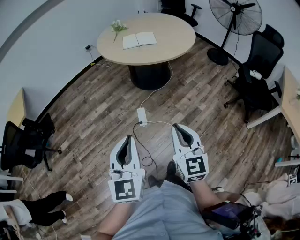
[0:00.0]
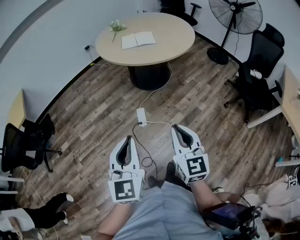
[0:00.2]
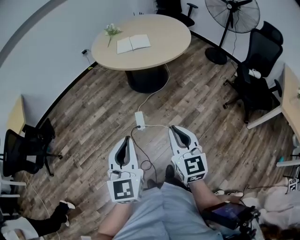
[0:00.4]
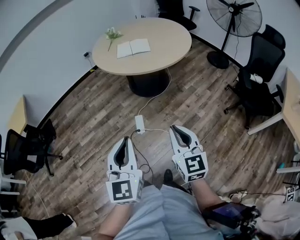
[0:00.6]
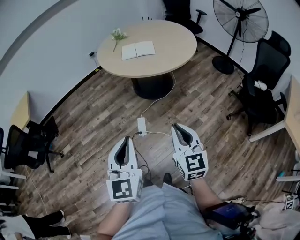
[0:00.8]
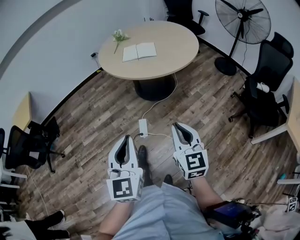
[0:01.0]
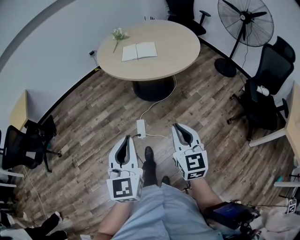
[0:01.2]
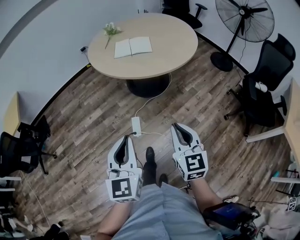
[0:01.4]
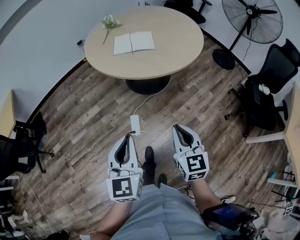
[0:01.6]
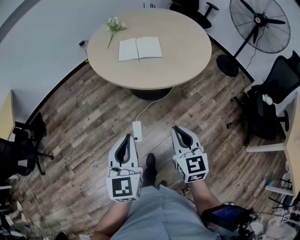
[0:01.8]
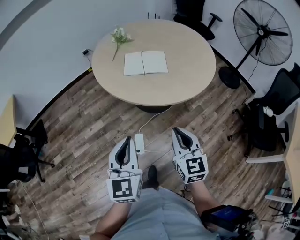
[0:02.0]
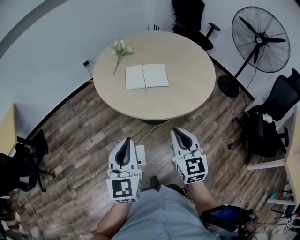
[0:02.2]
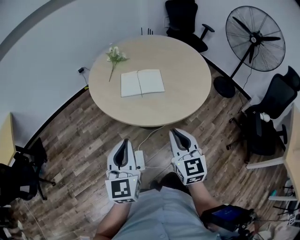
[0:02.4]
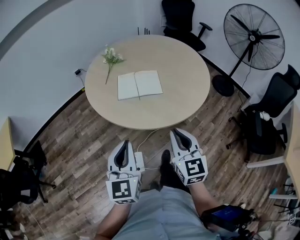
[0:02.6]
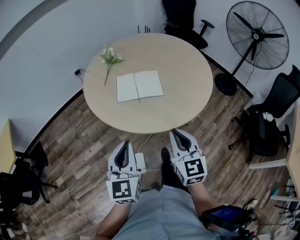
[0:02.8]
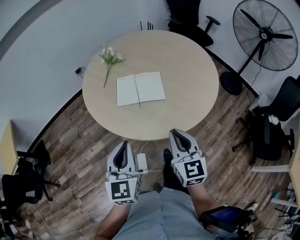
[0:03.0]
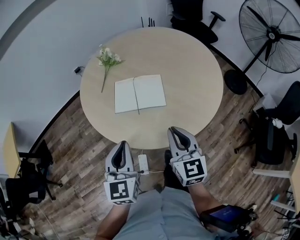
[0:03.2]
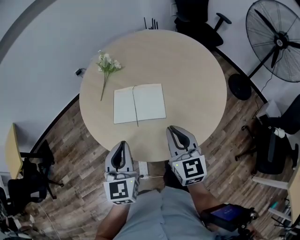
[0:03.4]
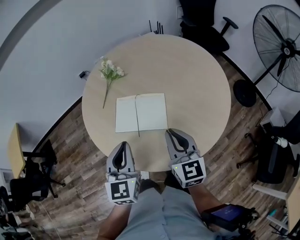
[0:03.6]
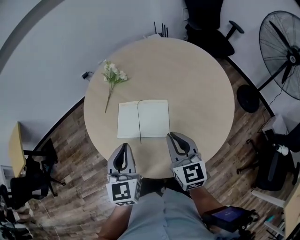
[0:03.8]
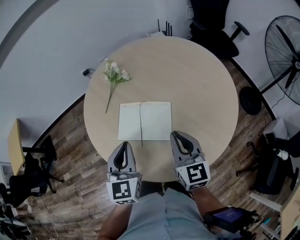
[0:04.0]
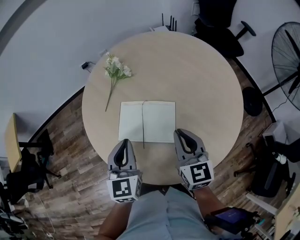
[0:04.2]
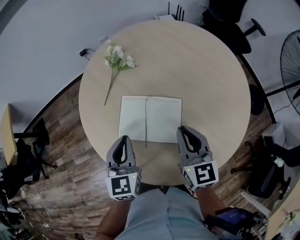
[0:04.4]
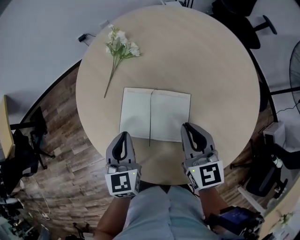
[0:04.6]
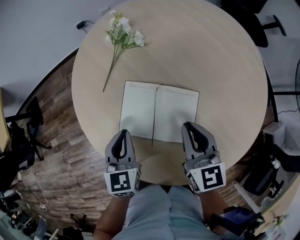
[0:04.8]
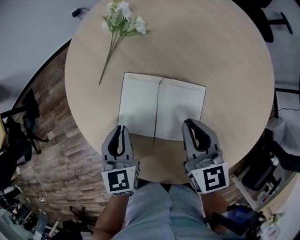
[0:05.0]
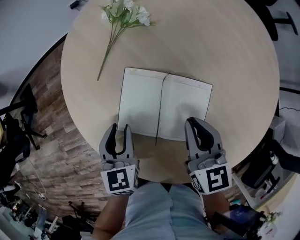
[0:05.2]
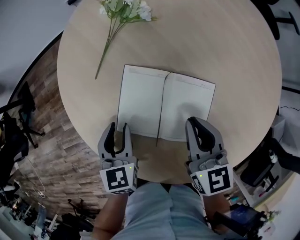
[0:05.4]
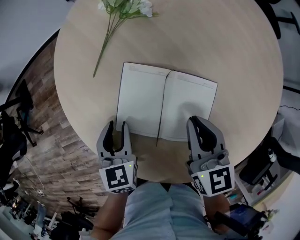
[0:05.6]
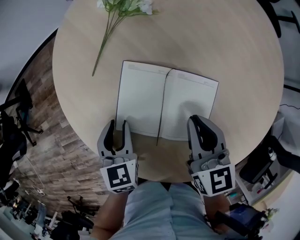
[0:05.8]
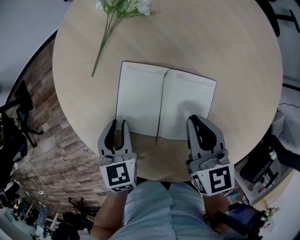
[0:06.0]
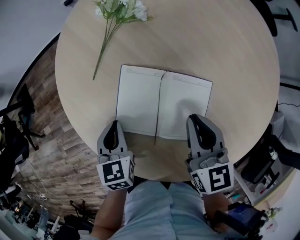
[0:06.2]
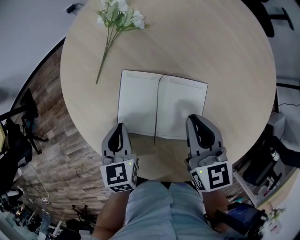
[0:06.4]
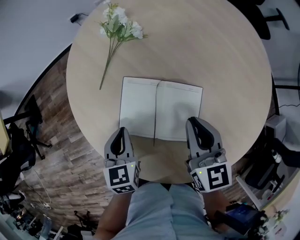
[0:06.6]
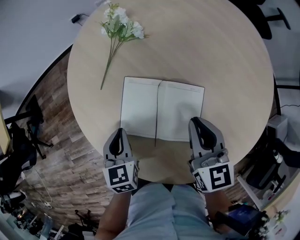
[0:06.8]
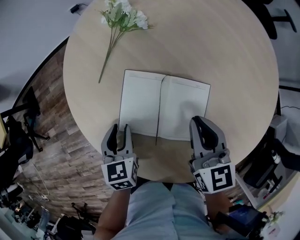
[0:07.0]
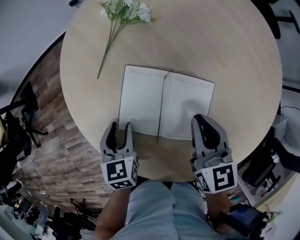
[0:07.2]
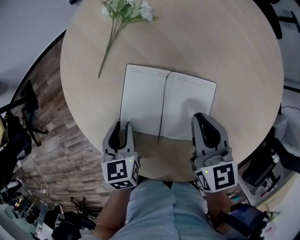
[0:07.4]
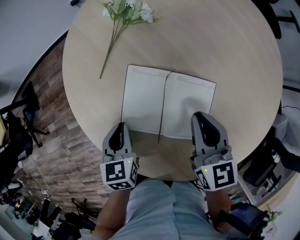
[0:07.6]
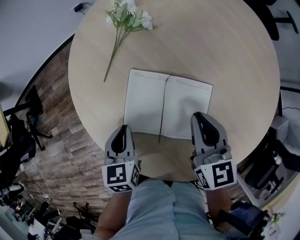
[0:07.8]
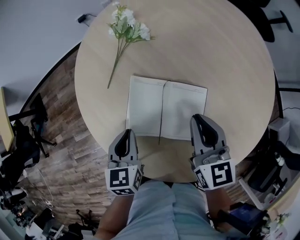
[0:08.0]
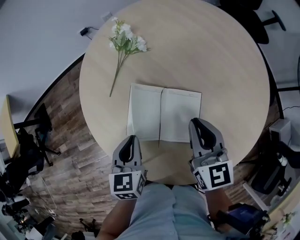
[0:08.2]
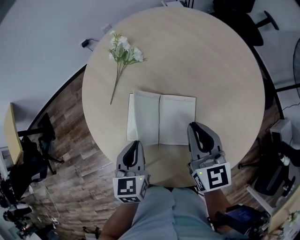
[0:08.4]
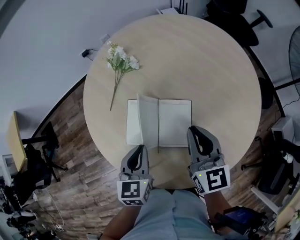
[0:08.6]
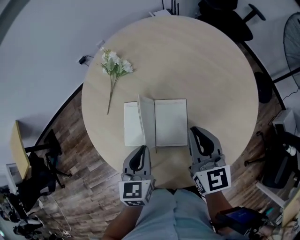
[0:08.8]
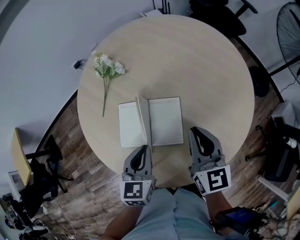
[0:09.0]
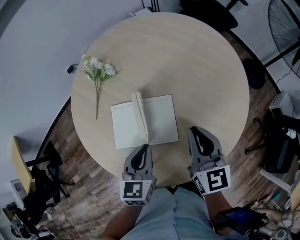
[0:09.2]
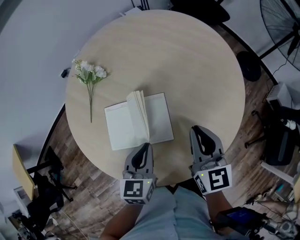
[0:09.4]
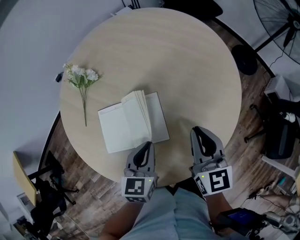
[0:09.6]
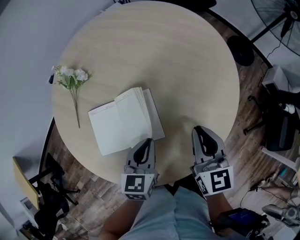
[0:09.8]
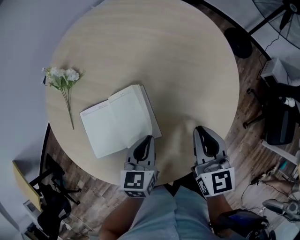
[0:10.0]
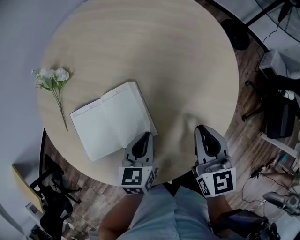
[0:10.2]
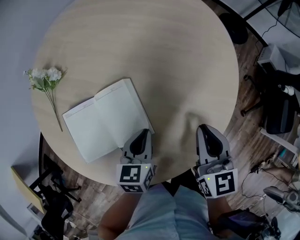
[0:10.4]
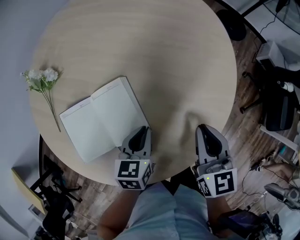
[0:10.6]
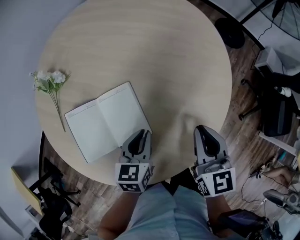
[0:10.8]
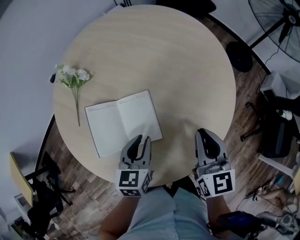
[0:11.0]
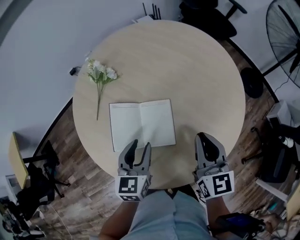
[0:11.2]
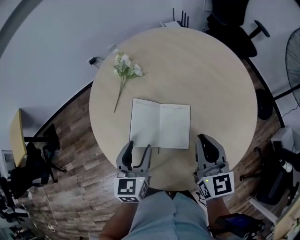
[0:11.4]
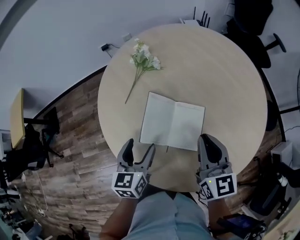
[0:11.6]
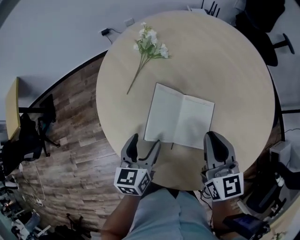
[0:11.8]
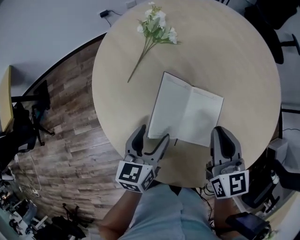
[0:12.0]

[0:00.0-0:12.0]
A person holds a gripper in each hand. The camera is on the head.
0:00.0 to 0:01.6: The right gripper is displaced forward and to the right by about 30 cm; the left gripper moves forward, some 30 cm.
0:01.6 to 0:03.0: Both grippers travel together forward, some 40 cm.
0:03.0 to 0:04.4: Both grippers move forward, about 35 cm.
0:04.4 to 0:06.0: The left gripper travels downward by roughly 20 cm, and changes its angle by approximately 20 degrees. The right gripper is displaced downward and forward by roughly 15 cm.
0:07.6 to 0:09.0: The left gripper is displaced to the right and upward by some 20 cm, and rotates about 30 degrees; the right gripper travels upward, to the right and backward by approximately 20 cm.
0:09.0 to 0:10.4: The right gripper moves to the right and downward, roughly 20 cm, and rotates approximately 20 degrees. Meanwhile the left gripper shifts some 20 cm downward and to the right, and changes its angle by some 20 degrees.
0:10.4 to 0:12.0: The left gripper moves some 25 cm, rotates some 40 degrees, and opens, while the right gripper moves approximately 30 cm, and turns by approximately 40 degrees.

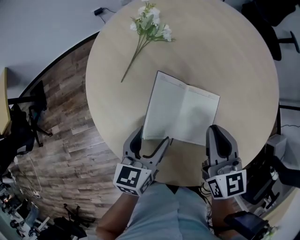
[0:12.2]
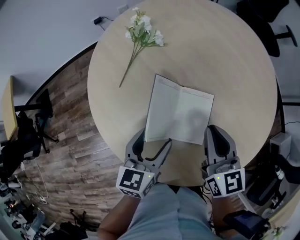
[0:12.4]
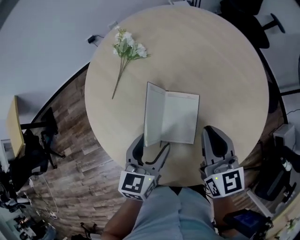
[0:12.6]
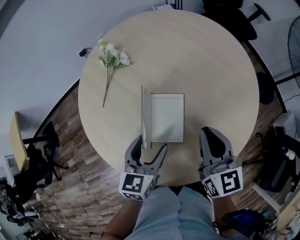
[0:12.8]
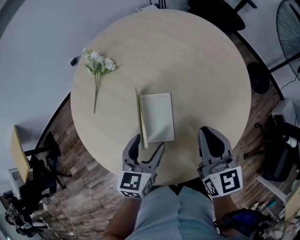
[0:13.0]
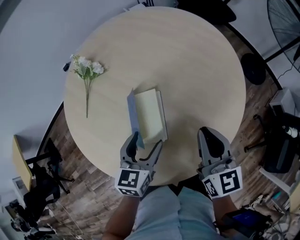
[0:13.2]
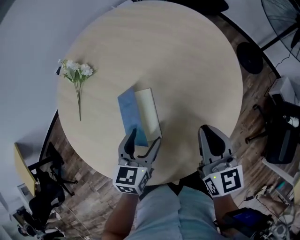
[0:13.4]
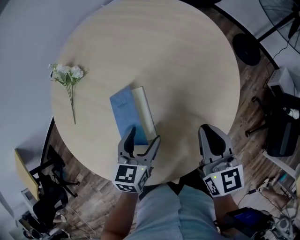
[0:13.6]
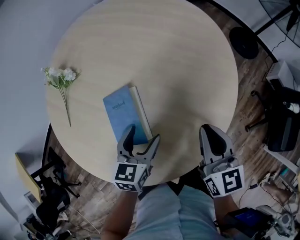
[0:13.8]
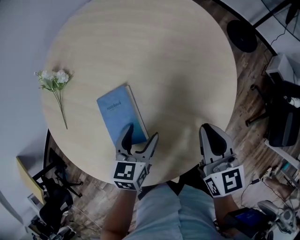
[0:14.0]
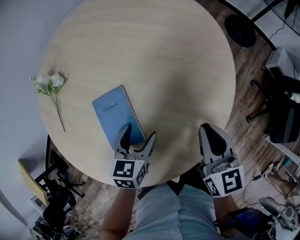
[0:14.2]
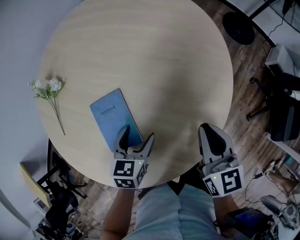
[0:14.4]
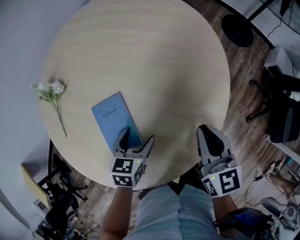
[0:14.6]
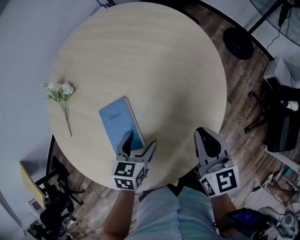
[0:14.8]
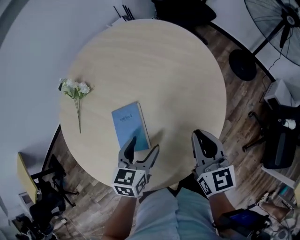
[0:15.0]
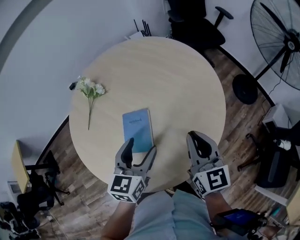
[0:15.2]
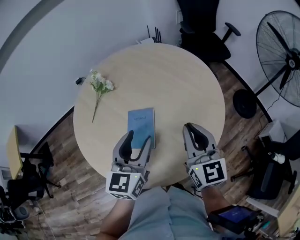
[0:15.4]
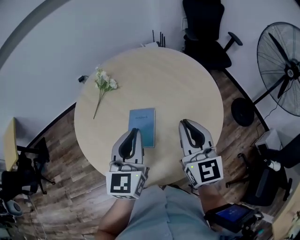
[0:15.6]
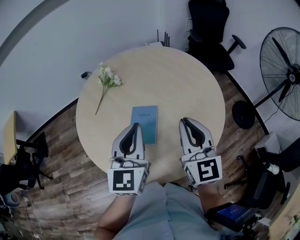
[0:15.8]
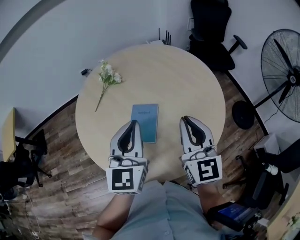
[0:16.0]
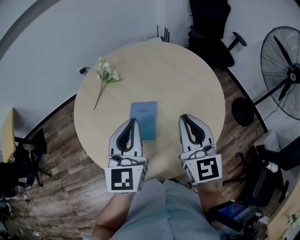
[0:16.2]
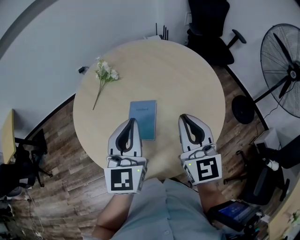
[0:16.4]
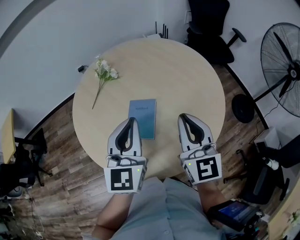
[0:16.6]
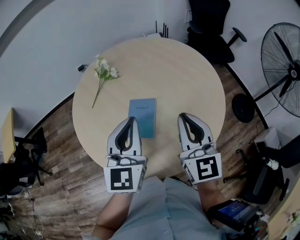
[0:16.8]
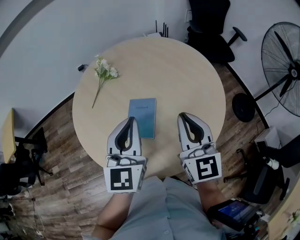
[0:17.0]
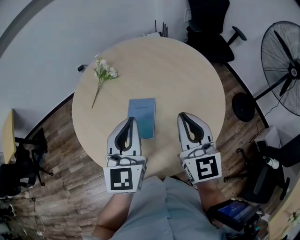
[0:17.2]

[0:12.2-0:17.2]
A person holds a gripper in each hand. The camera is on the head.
0:12.2 to 0:13.8: Both grippers move to the right, approximately 30 cm. The right gripper swivels roughly 30 degrees. The left gripper swivels roughly 30 degrees.
0:13.8 to 0:15.6: The two grippers go roughly 25 cm upward. The right gripper swivels roughly 30 degrees; the left gripper points its fingers roughly 30 degrees further upward, and closes.
0:15.6 to 0:17.2: The grippers make only small movements.

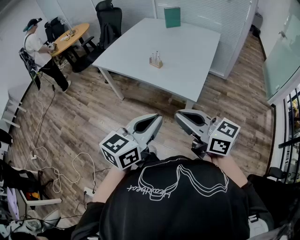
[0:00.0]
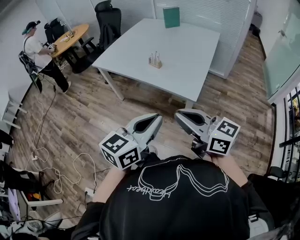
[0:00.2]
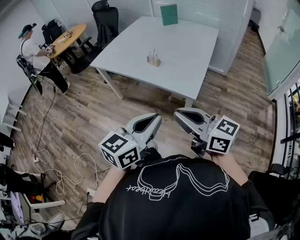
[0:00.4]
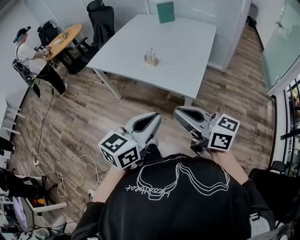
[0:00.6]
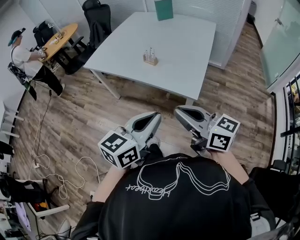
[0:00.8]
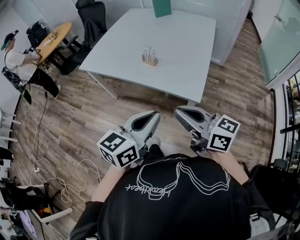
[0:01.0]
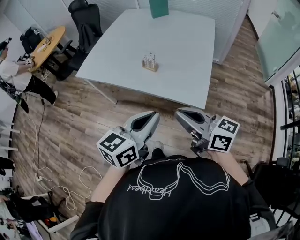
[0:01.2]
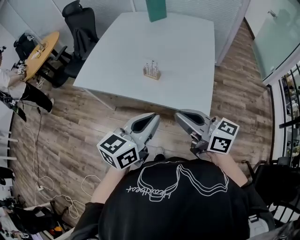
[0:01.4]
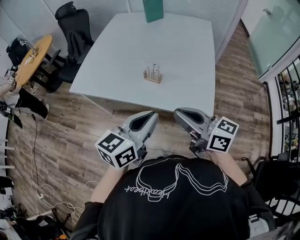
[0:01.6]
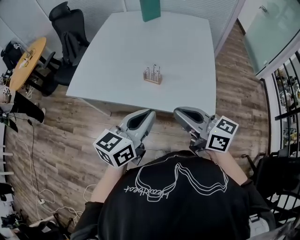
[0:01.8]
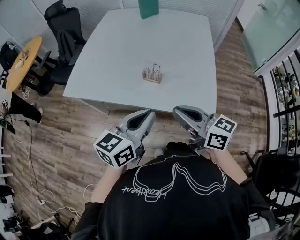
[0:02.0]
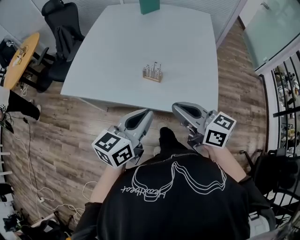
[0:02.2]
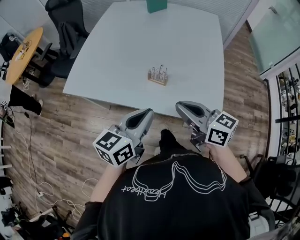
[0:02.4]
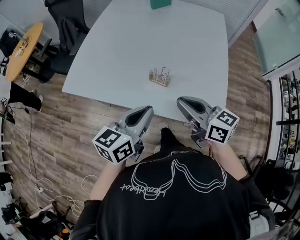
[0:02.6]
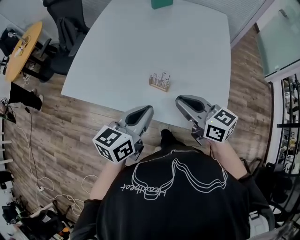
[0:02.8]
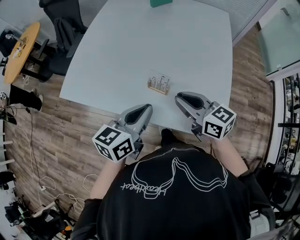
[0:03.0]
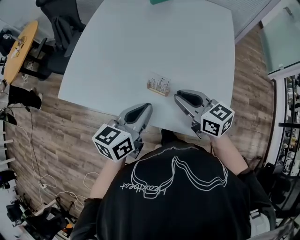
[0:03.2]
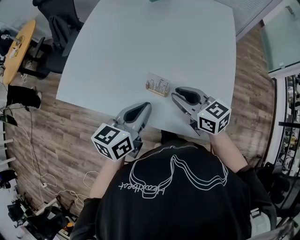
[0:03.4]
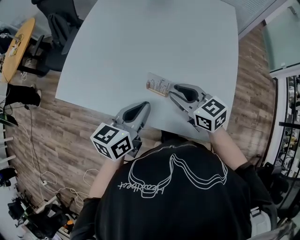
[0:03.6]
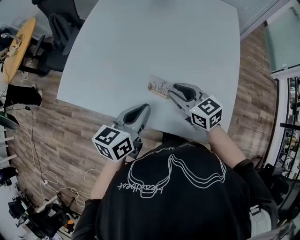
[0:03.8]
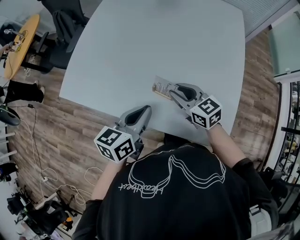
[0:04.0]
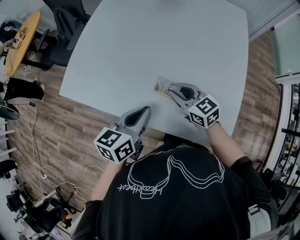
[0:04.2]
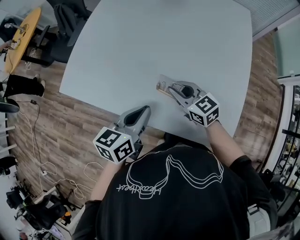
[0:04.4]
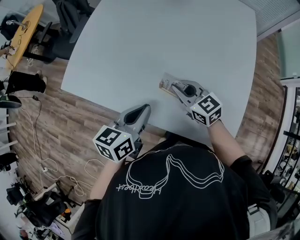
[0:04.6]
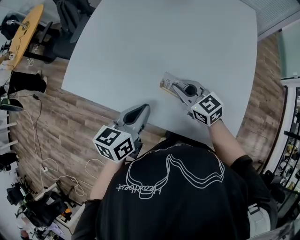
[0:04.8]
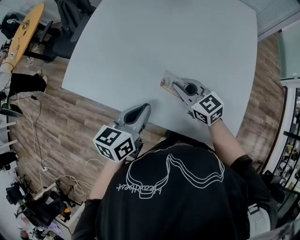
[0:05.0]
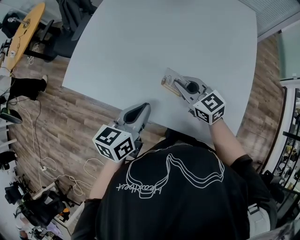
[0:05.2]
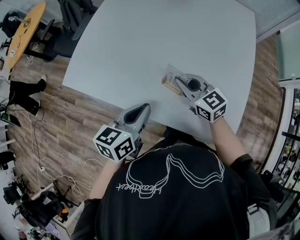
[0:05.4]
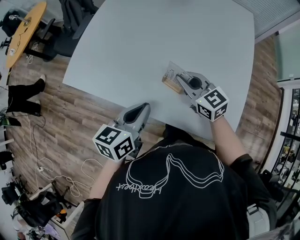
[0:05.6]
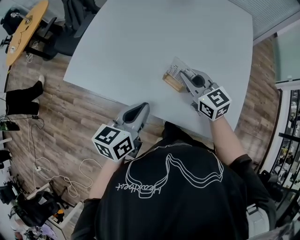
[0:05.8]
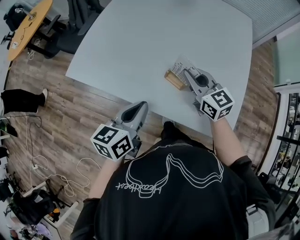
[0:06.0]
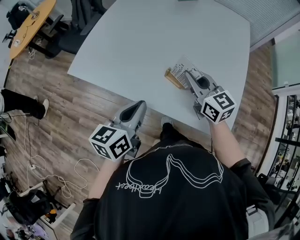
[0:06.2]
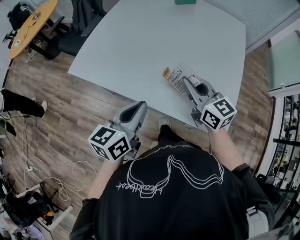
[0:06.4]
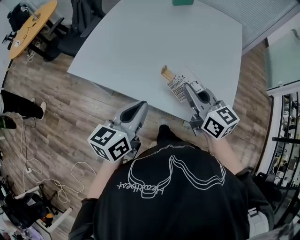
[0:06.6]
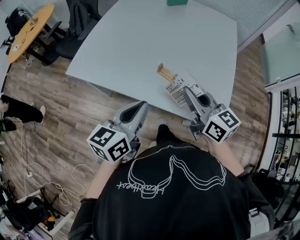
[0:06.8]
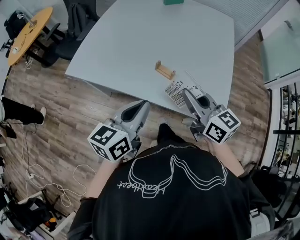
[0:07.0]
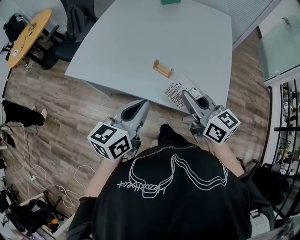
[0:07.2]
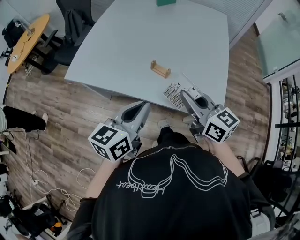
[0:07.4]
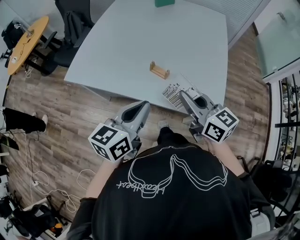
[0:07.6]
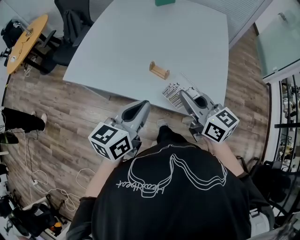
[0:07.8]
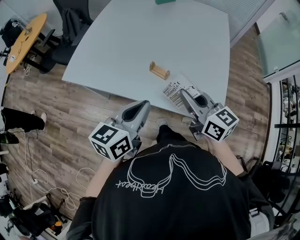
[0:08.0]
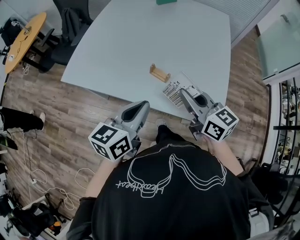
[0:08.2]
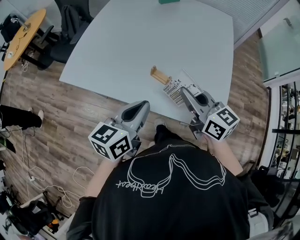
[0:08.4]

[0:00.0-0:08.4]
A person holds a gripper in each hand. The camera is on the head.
0:00.0 to 0:01.4: Both grippers travel together forward, some 25 cm.
0:01.4 to 0:02.8: The two grippers go approximately 20 cm forward.
0:02.8 to 0:04.2: The left gripper travels forward and downward by approximately 10 cm. Meanwhile the right gripper is displaced forward and downward by approximately 20 cm.
0:04.2 to 0:05.6: The grippers stay close to where they were, moving slightly.
0:05.6 to 0:07.0: The right gripper shifts roughly 20 cm backward and upward, and swivels some 20 degrees; the left gripper goes about 15 cm backward and upward.
0:07.0 to 0:08.4: The grippers move only a little.
